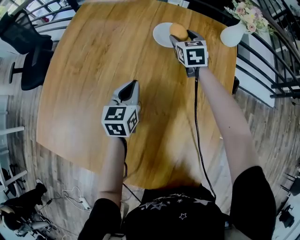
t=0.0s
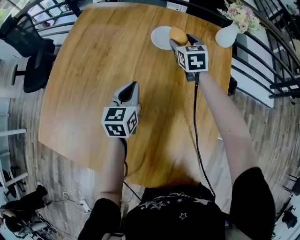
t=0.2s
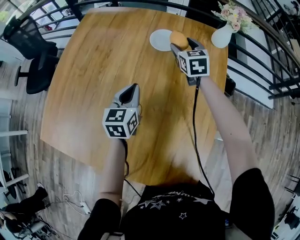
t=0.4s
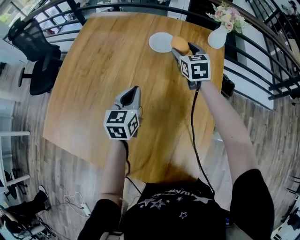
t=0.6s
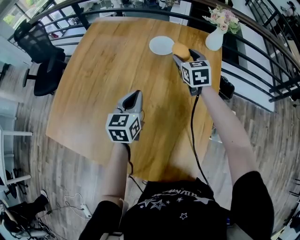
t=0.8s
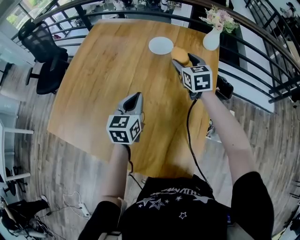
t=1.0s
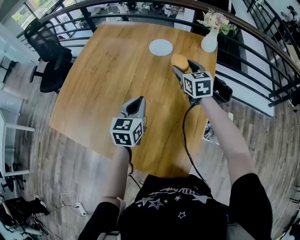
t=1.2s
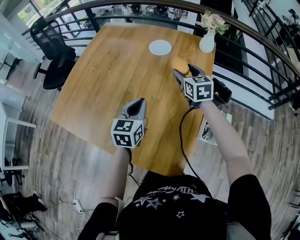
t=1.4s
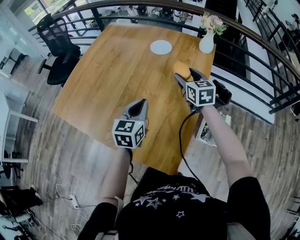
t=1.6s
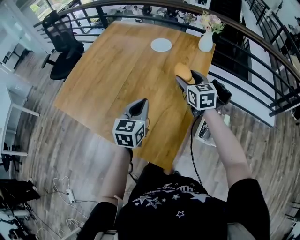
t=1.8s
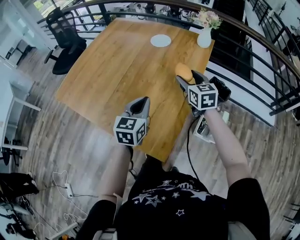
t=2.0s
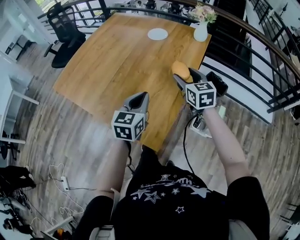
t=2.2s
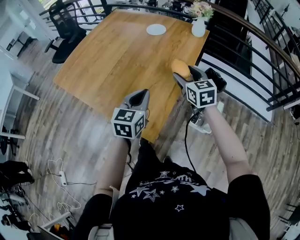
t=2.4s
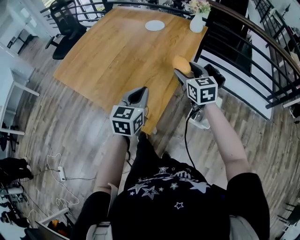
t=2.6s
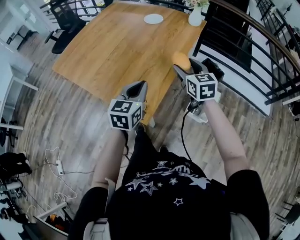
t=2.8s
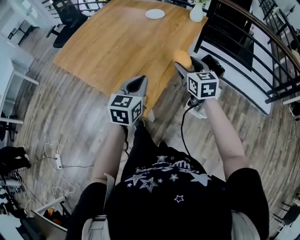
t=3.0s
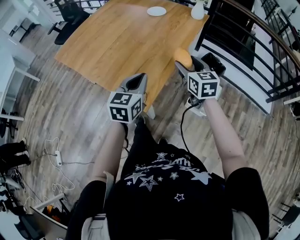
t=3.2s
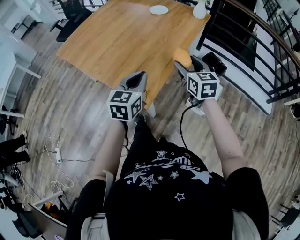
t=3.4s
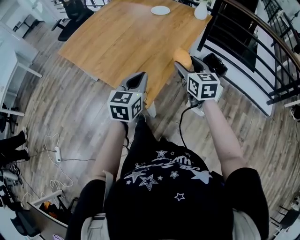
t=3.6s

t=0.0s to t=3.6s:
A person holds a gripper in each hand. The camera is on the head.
t=0.0s to t=1.8s: The right gripper goes approximately 35 cm backward. Meanwhile the left gripper goes some 35 cm backward, to the right and upward.
t=1.8s to t=3.6s: The left gripper is displaced backward and to the right by roughly 25 cm. Meanwhile the right gripper moves backward, approximately 25 cm.

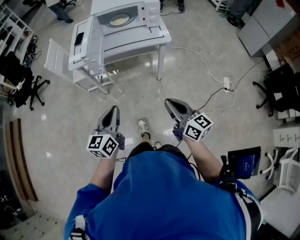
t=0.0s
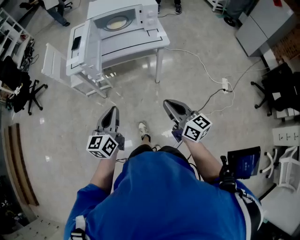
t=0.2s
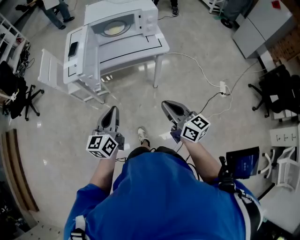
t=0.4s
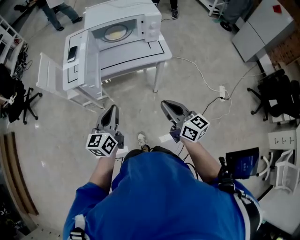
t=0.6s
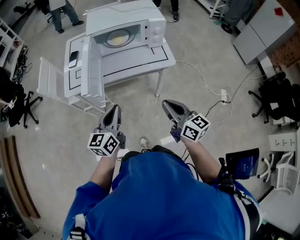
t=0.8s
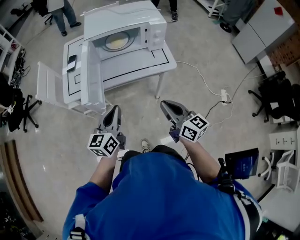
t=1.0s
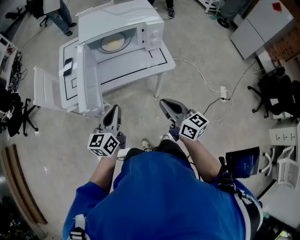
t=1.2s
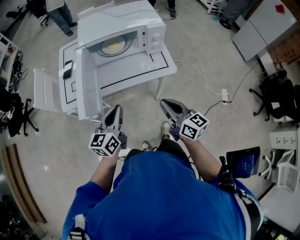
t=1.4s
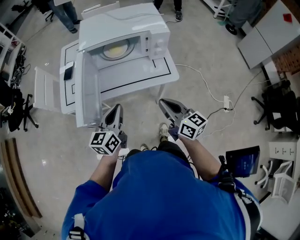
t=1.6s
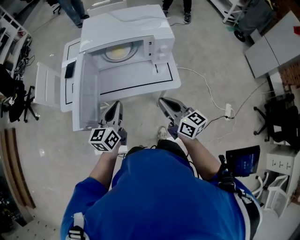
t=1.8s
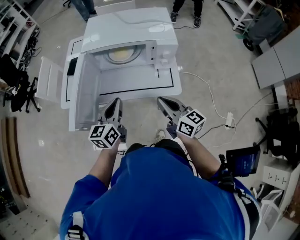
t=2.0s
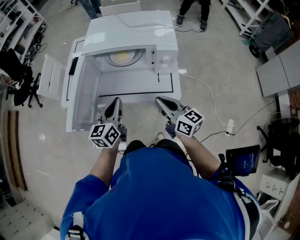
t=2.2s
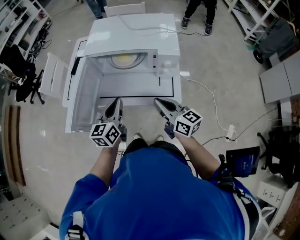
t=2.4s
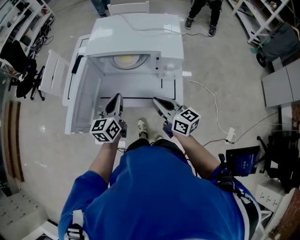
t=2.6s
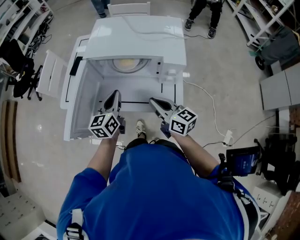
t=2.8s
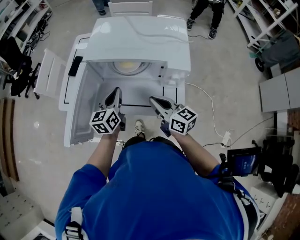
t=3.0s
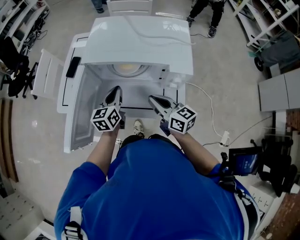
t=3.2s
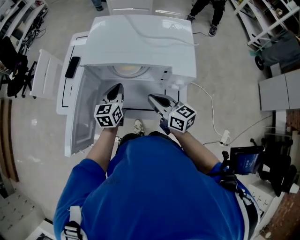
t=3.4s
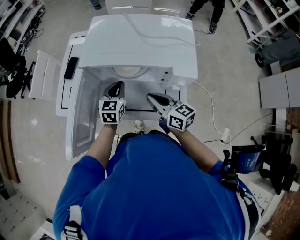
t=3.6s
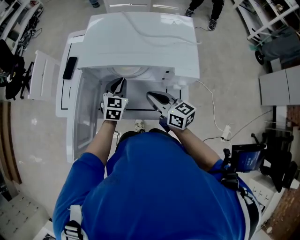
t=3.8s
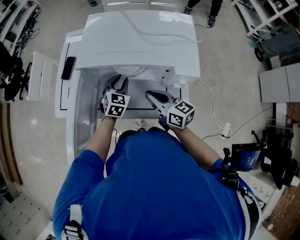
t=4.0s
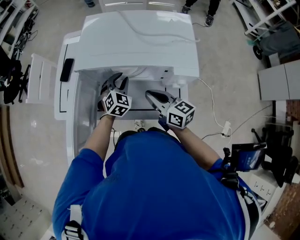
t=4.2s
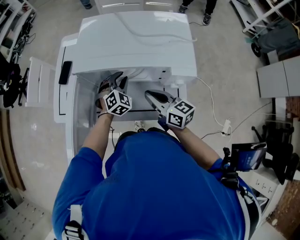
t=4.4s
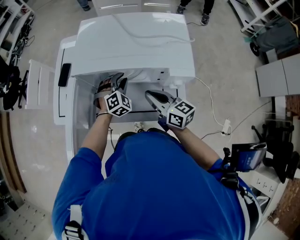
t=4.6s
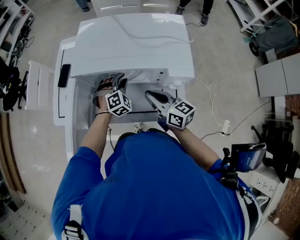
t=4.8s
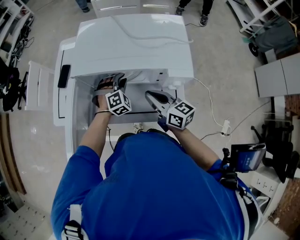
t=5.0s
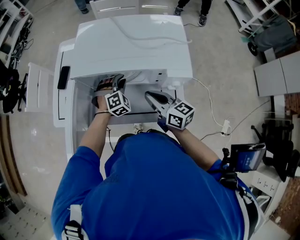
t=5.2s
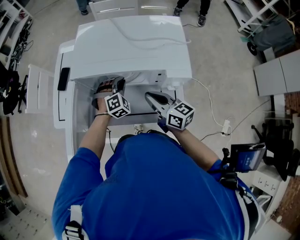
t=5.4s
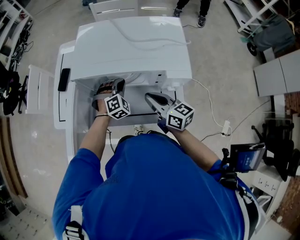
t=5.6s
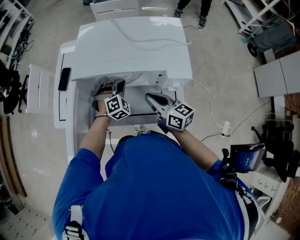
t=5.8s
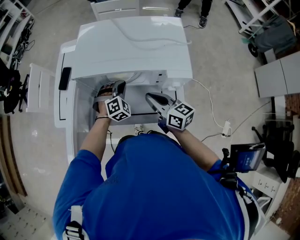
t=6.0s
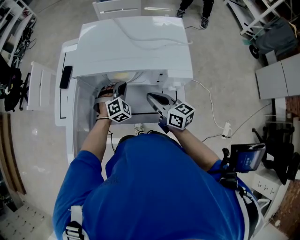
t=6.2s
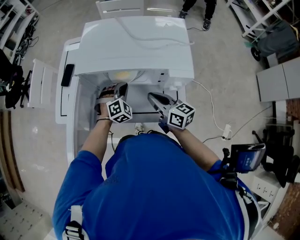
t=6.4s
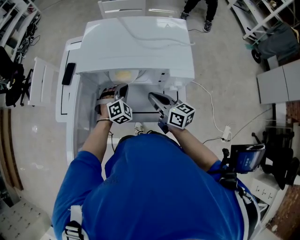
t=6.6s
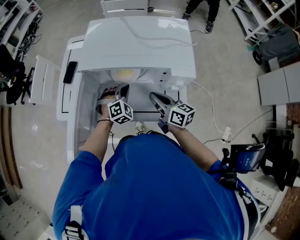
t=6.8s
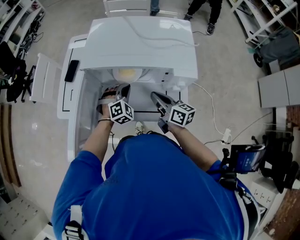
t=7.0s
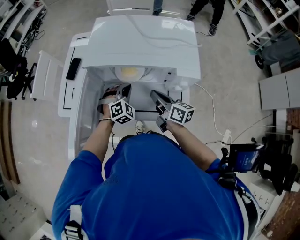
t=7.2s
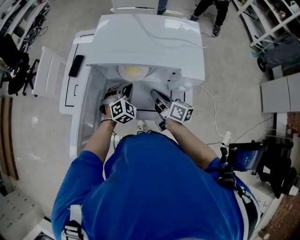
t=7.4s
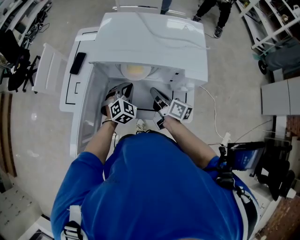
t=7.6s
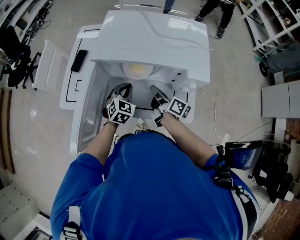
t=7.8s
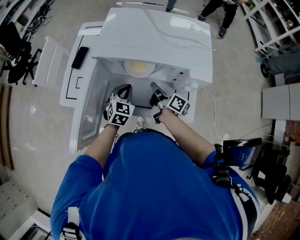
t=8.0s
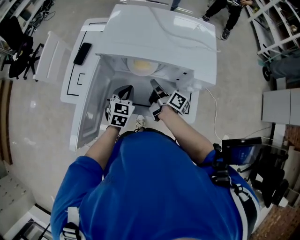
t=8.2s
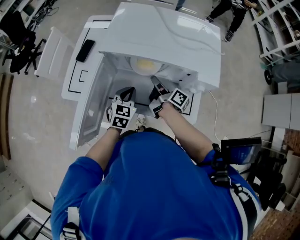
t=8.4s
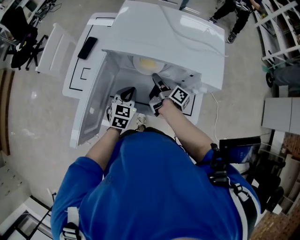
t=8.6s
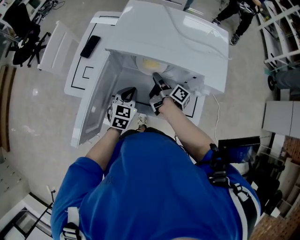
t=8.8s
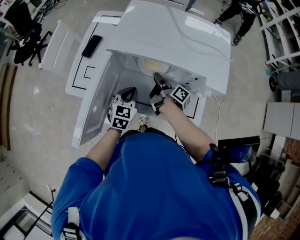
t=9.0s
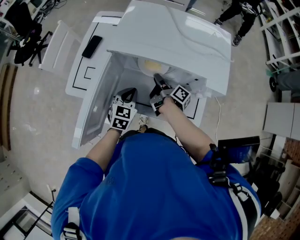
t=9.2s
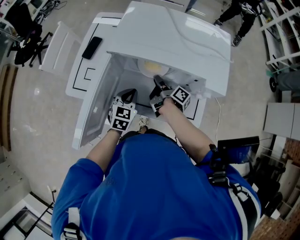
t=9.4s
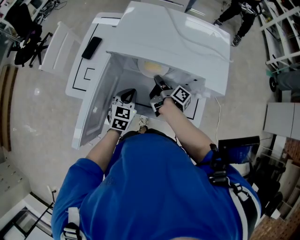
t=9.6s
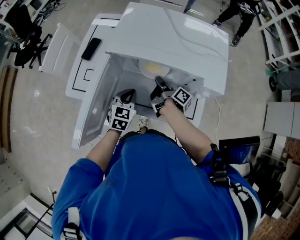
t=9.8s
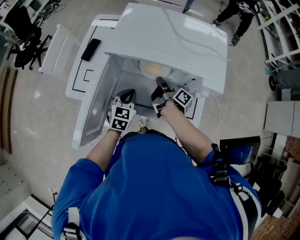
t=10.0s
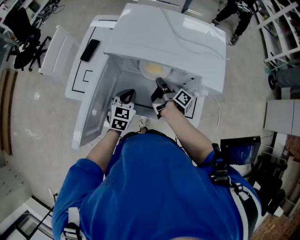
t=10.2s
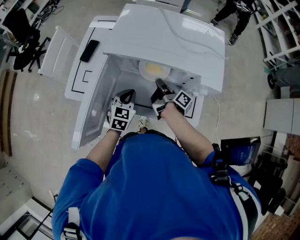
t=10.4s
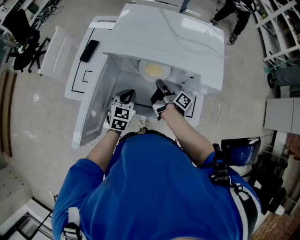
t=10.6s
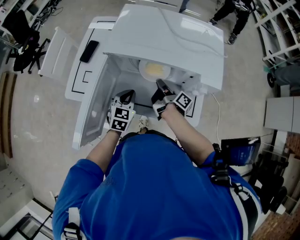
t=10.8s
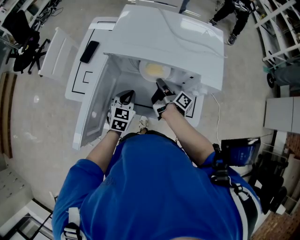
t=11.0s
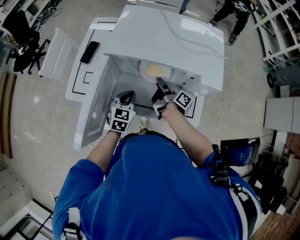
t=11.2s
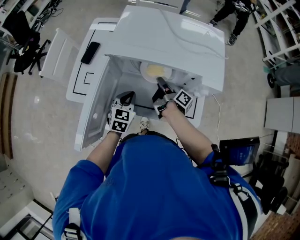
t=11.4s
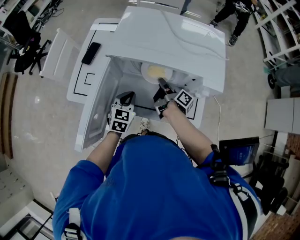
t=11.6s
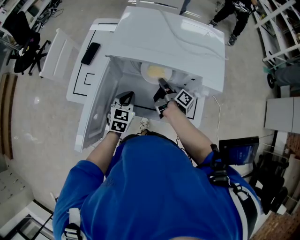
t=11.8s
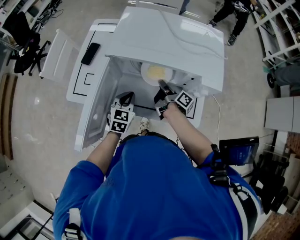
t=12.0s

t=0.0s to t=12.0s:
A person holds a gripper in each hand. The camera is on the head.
t=0.0s to t=1.6s: The two grippers go about 30 cm forward.
t=1.6s to t=3.0s: The grippers both shift forward by about 20 cm. The right gripper turns by some 20 degrees; the left gripper rotates approximately 20 degrees.
t=3.0s to t=4.4s: The right gripper shifts some 5 cm forward; the left gripper heads downward, forward and to the right, covering roughly 15 cm, rolls clockwise, seen from behind, by approximately 70 degrees, and opens.
t=4.4s to t=6.0s: There are only small adjustments of the grippers.
t=6.0s to t=7.6s: The right gripper moves roughly 5 cm, and changes its angle by approximately 30 degrees. The left gripper changes place by about 5 cm, and swivels some 20 degrees.
t=7.6s to t=9.0s: The left gripper heads to the left, covering some 5 cm, and rotates some 30 degrees; the right gripper goes about 10 cm forward and downward, turns by approximately 30 degrees, and opens its fingers.
t=9.0s to t=10.4s: The right gripper closes.
t=10.4s to t=12.0s: The right gripper opens and closes again.

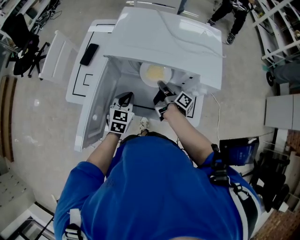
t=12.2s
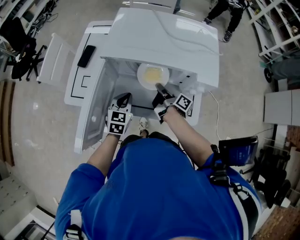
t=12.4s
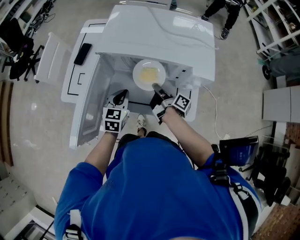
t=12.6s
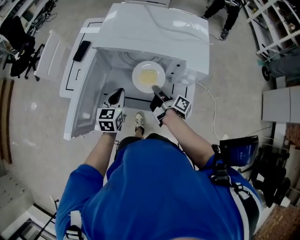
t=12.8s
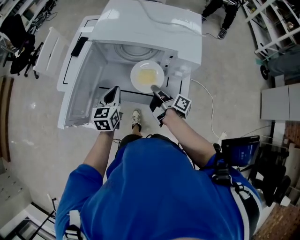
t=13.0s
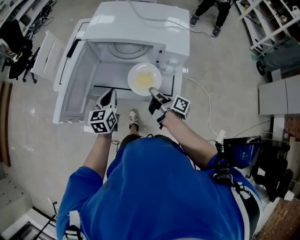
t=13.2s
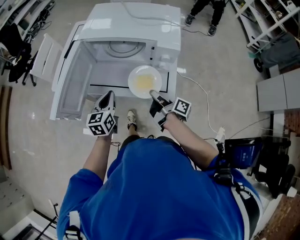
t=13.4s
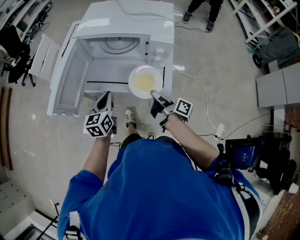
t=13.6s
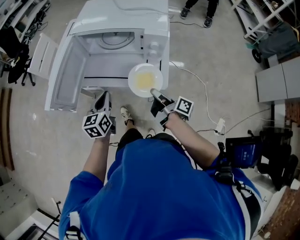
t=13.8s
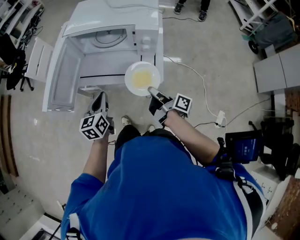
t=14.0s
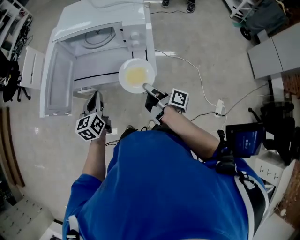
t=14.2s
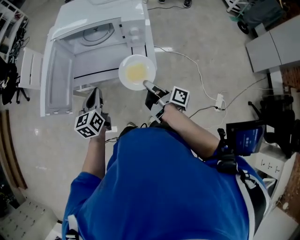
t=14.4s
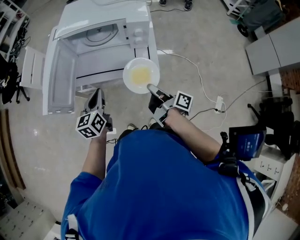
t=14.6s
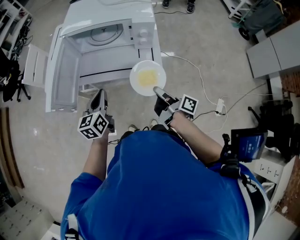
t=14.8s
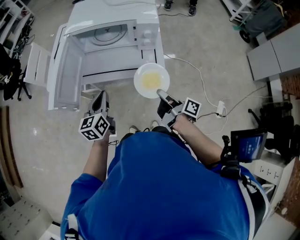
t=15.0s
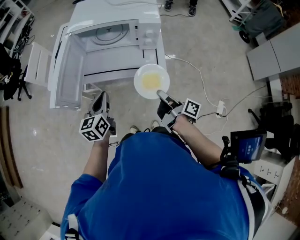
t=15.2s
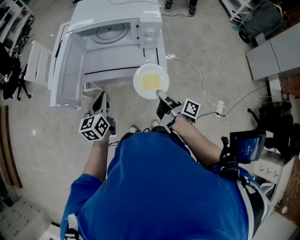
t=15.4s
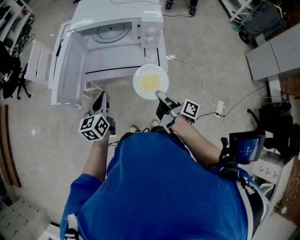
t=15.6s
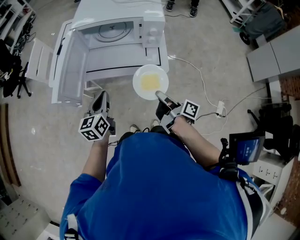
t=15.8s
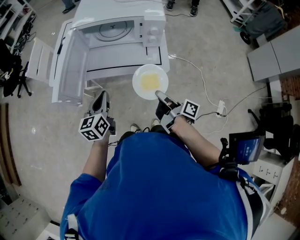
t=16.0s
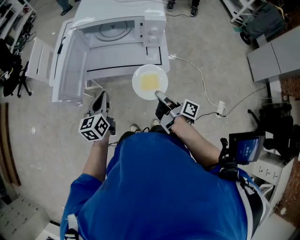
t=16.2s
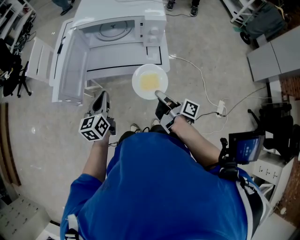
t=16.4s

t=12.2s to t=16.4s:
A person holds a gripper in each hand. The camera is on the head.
t=12.2s to t=13.6s: The left gripper shifts some 15 cm backward, and changes its angle by about 30 degrees; the right gripper goes approximately 25 cm backward.
t=13.6s to t=15.0s: The left gripper moves backward, some 5 cm. The right gripper goes some 10 cm backward.
t=15.0s to t=16.4s: The grippers move only a little.

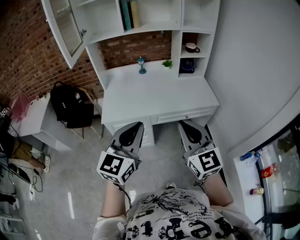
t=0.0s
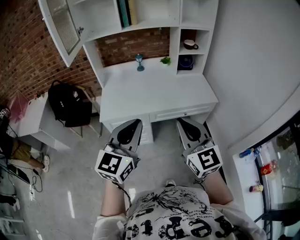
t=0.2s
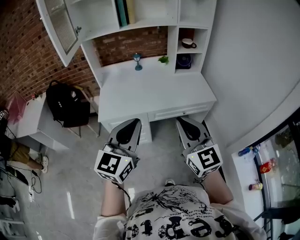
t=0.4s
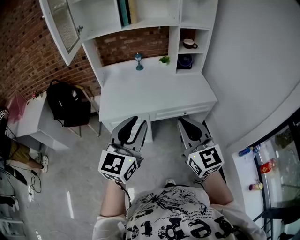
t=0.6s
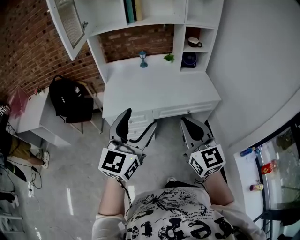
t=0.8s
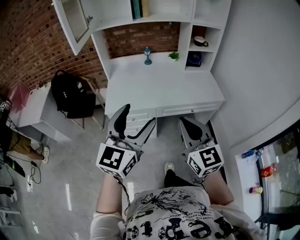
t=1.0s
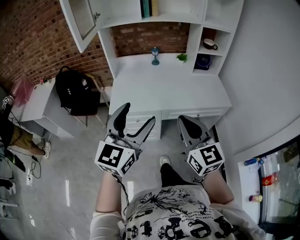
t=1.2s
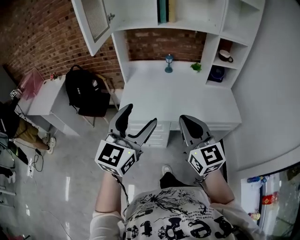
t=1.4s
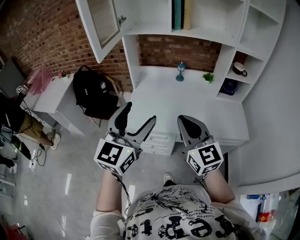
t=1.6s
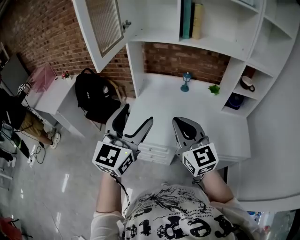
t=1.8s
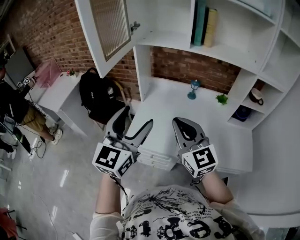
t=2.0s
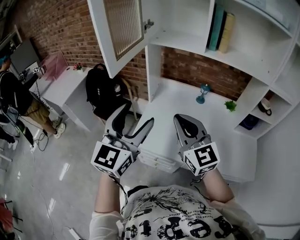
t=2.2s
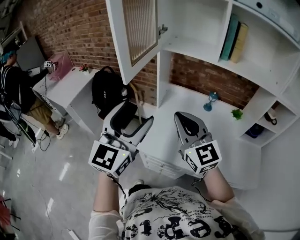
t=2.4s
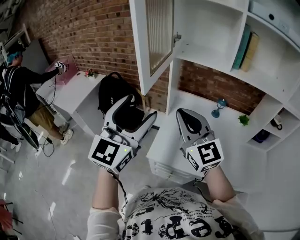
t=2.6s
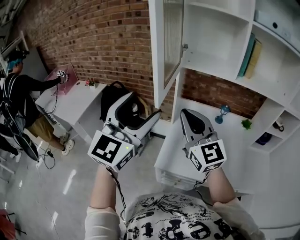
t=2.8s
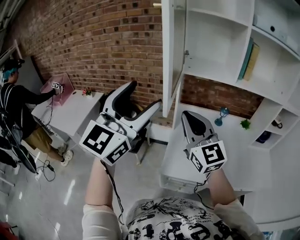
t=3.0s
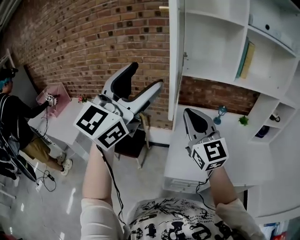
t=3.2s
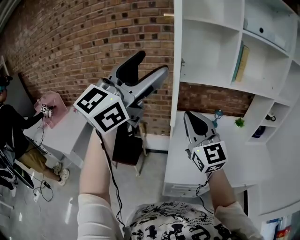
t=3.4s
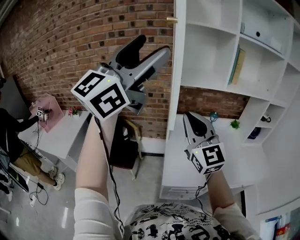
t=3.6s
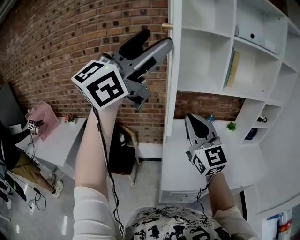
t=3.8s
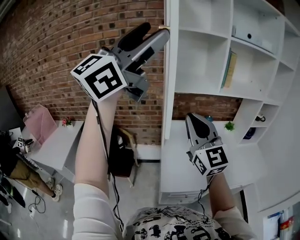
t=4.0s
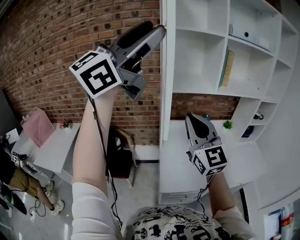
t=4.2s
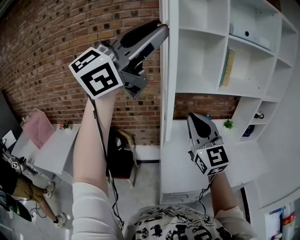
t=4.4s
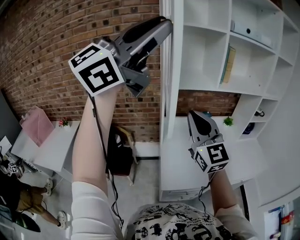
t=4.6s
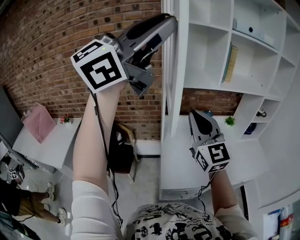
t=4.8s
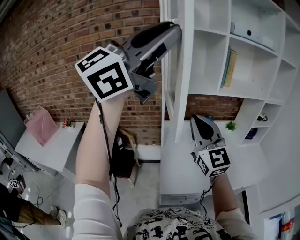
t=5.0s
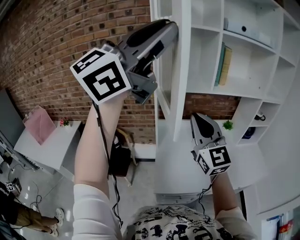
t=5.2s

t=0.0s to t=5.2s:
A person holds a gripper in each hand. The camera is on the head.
t=0.0s to t=1.8s: The grippers both shift forward and to the left by about 35 cm. The left gripper swivels roughly 20 degrees, and opens. Meanwhile the right gripper rotates about 20 degrees.
t=1.8s to t=3.4s: The right gripper ends up some 40 cm from where it was. The left gripper shifts by approximately 40 cm, and changes its angle by approximately 30 degrees.
t=3.4s to t=5.2s: The left gripper shifts about 15 cm upward, to the right and forward, swivels about 20 degrees, and closes up, while the right gripper travels to the right and forward by some 10 cm.
